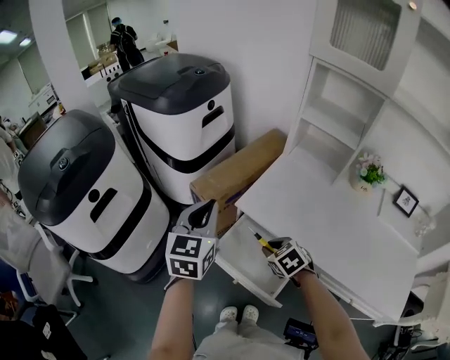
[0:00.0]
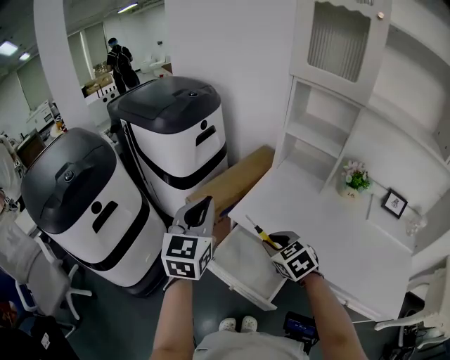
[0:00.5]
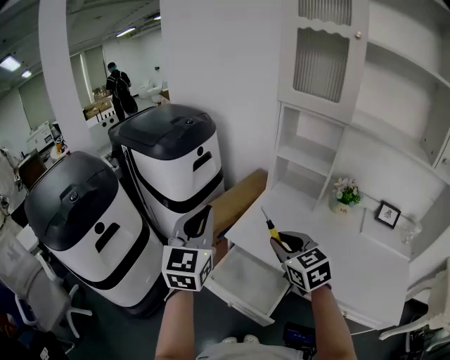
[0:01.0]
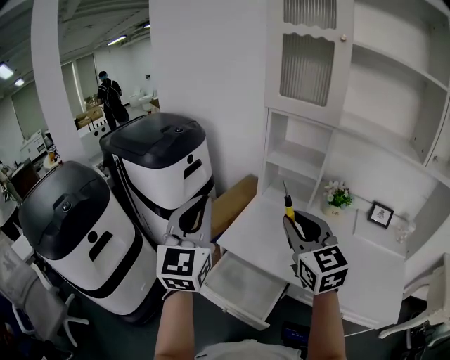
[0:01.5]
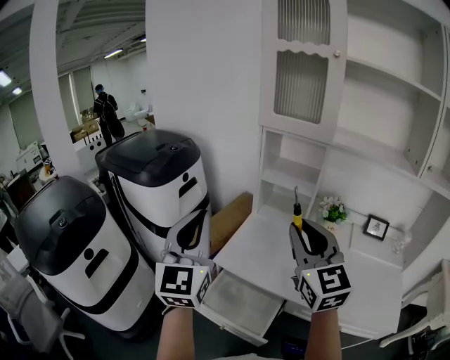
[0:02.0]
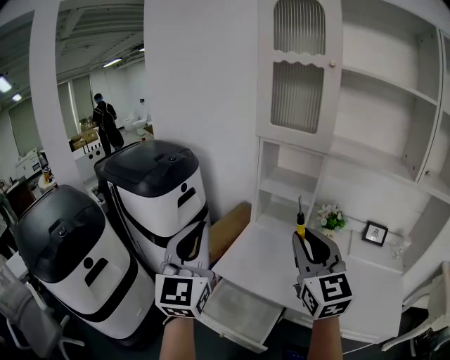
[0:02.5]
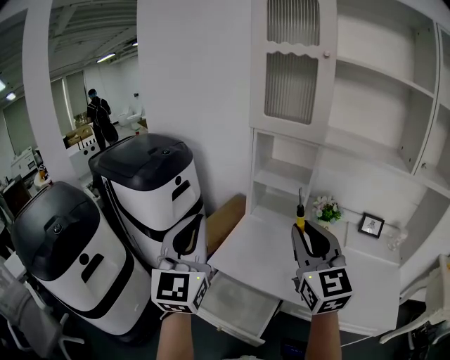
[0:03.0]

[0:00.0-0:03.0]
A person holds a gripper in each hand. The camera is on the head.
0:00.0 to 0:01.5: The right gripper is displaced upward by approximately 35 cm, and angles its fingers upward, by roughly 50 degrees, while the left gripper is displaced upward by roughly 20 cm, and turns by some 30 degrees.
0:01.5 to 0:03.0: The right gripper shifts some 5 cm upward.

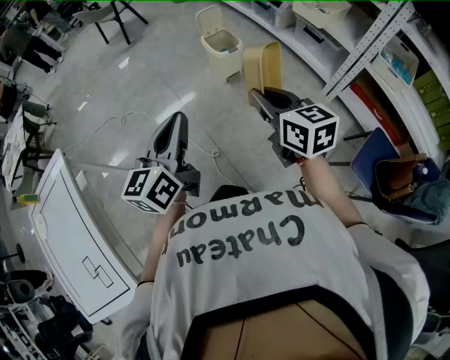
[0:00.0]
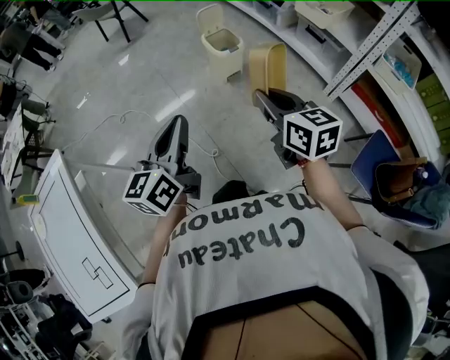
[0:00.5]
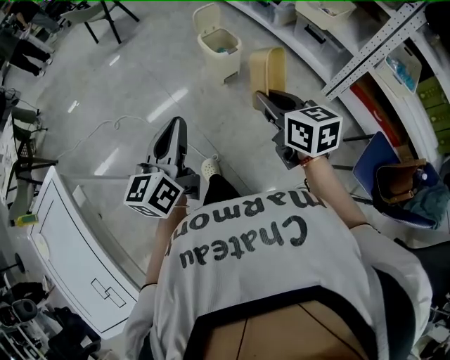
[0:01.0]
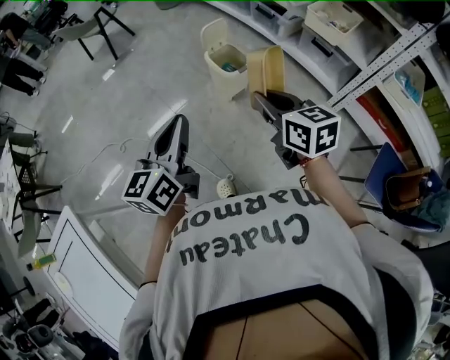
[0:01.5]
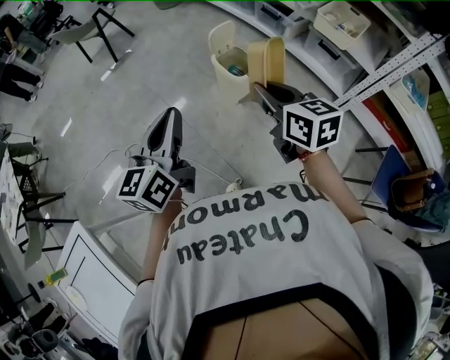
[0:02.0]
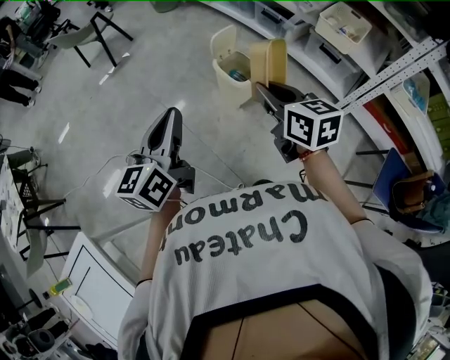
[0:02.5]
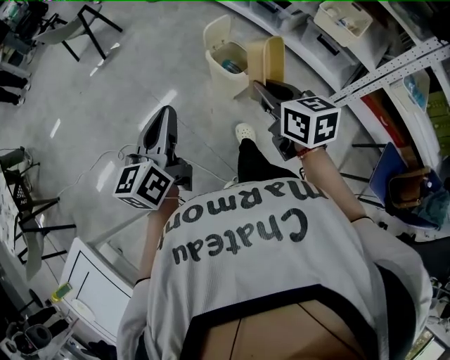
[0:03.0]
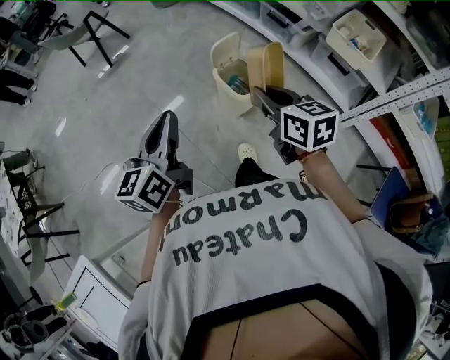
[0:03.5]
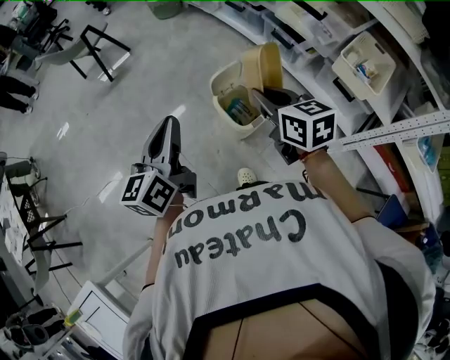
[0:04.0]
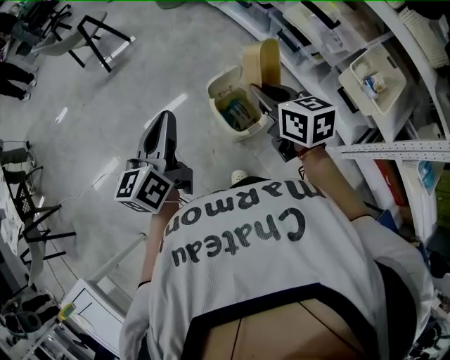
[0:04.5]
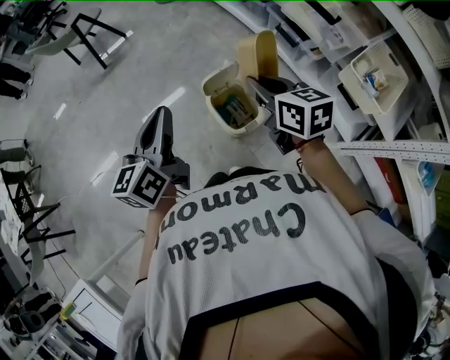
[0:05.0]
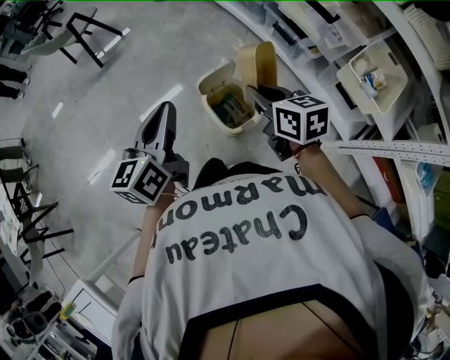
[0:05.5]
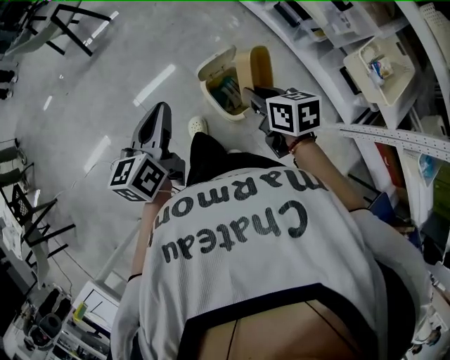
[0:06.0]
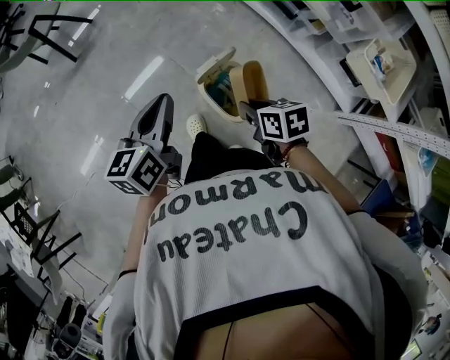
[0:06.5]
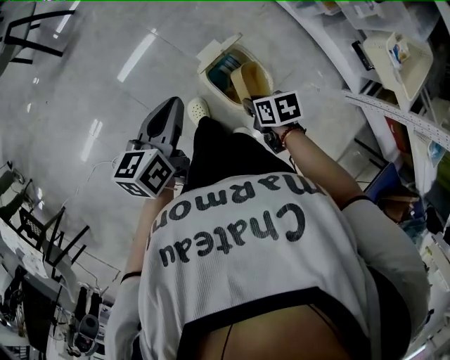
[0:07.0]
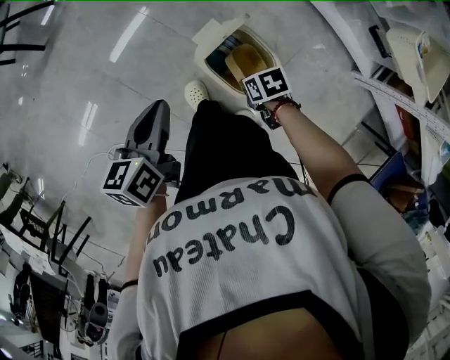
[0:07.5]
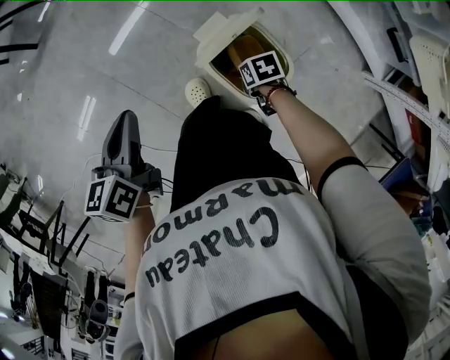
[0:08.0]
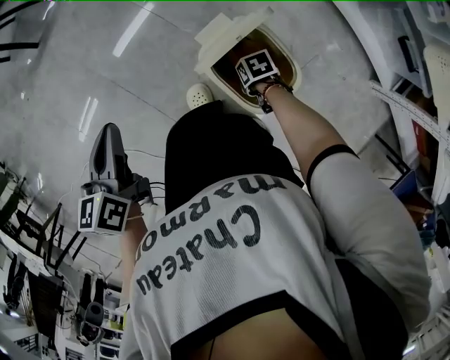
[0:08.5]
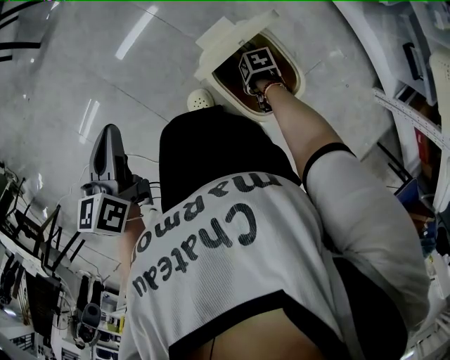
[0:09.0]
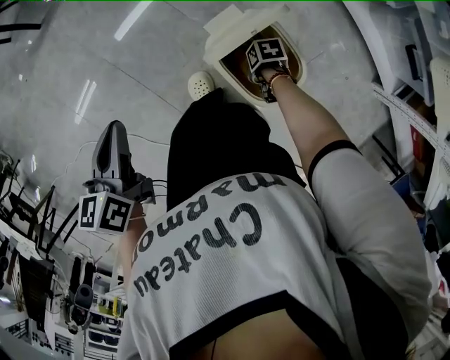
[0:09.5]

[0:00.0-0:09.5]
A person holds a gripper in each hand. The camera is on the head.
0:00.0 to 0:02.0: Both grippers move forward and to the left, about 35 cm.
0:02.0 to 0:04.0: The grippers both shift forward by some 30 cm.
0:04.0 to 0:05.5: The right gripper heads forward, downward and to the right, covering approximately 15 cm. The left gripper heads forward and to the right, covering some 10 cm.
0:05.5 to 0:07.5: The right gripper goes some 40 cm downward, and tips its fingers downward by some 40 degrees, while the left gripper is displaced downward and forward by approximately 30 cm, and swivels about 30 degrees.
0:07.5 to 0:09.5: The left gripper moves approximately 10 cm, while the right gripper travels downward by approximately 20 cm.

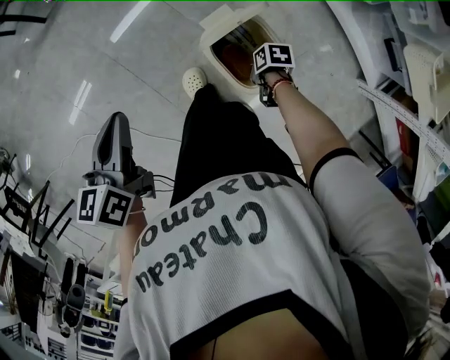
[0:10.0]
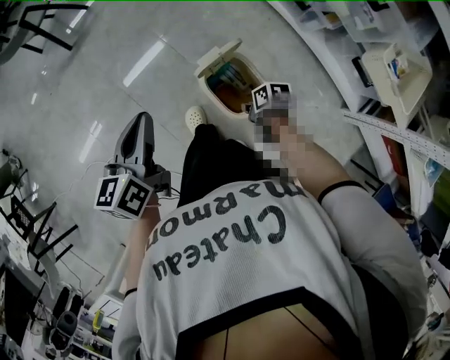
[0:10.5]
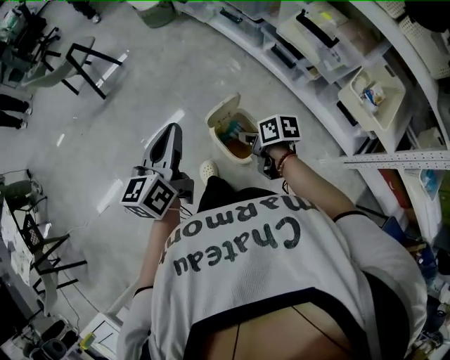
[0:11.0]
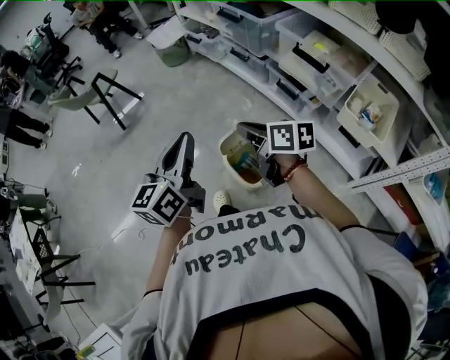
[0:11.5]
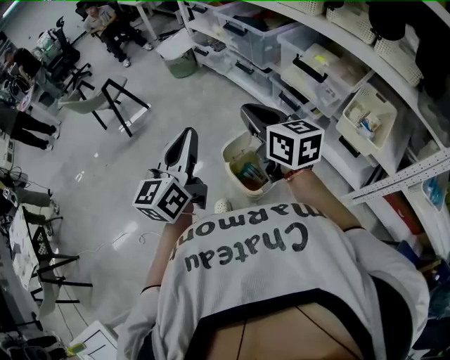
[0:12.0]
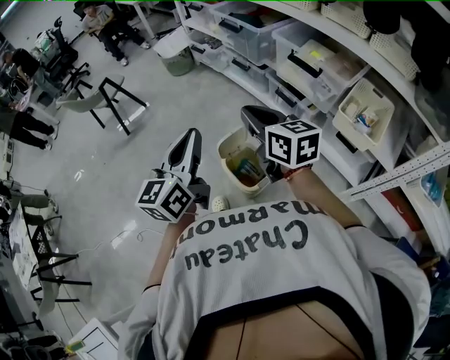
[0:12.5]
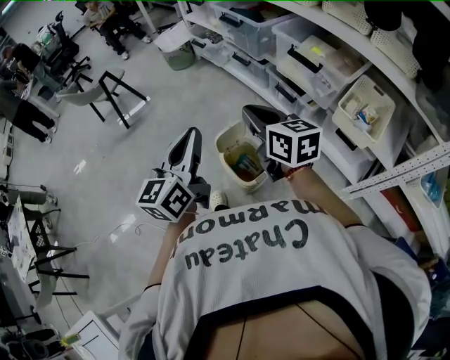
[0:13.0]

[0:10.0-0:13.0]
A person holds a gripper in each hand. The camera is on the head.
0:10.0 to 0:11.5: The left gripper goes roughly 30 cm upward, and tilts its fingers approximately 30 degrees upward; the right gripper is displaced upward by roughly 50 cm, and angles its fingers upward, by approximately 50 degrees.
0:11.5 to 0:13.0: The right gripper heads upward, covering roughly 10 cm, and swivels about 30 degrees; the left gripper moves backward, some 5 cm.

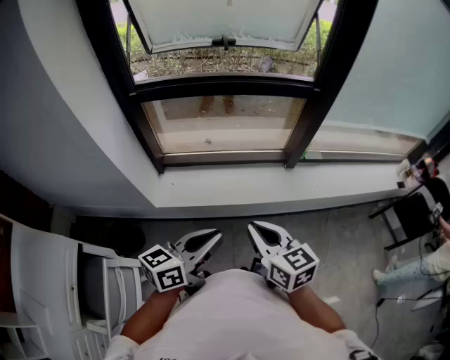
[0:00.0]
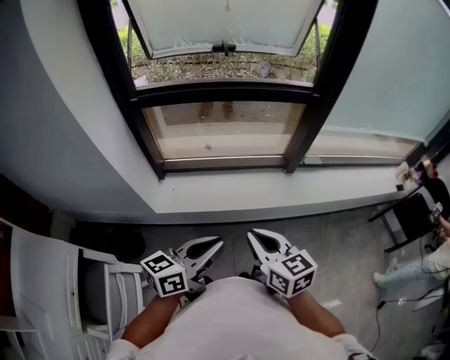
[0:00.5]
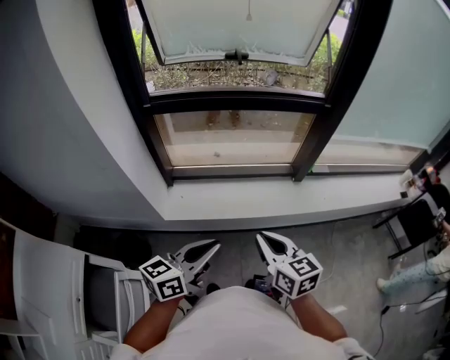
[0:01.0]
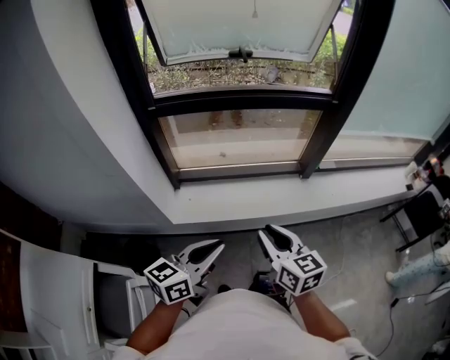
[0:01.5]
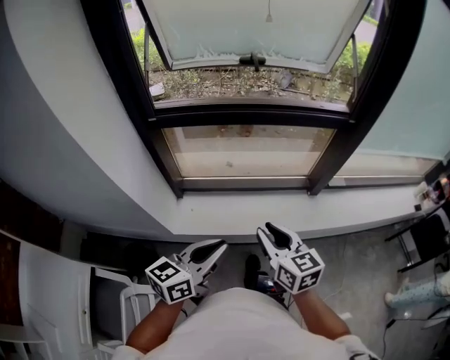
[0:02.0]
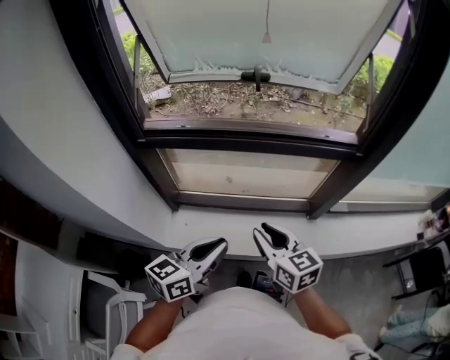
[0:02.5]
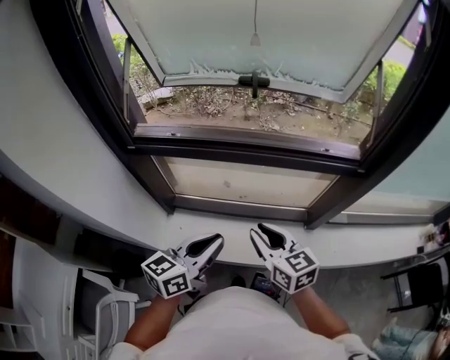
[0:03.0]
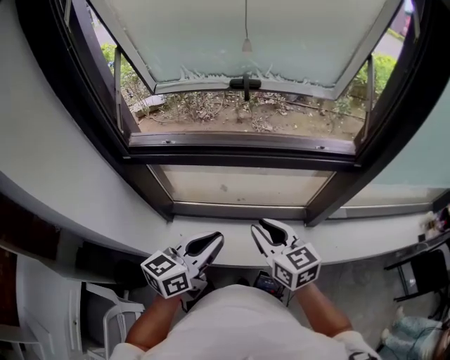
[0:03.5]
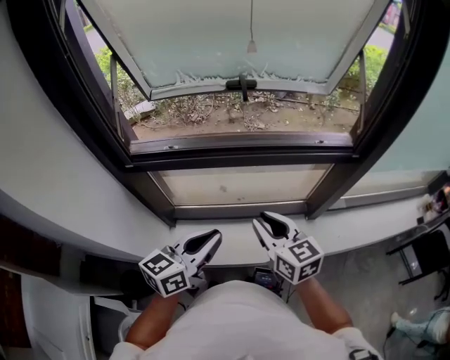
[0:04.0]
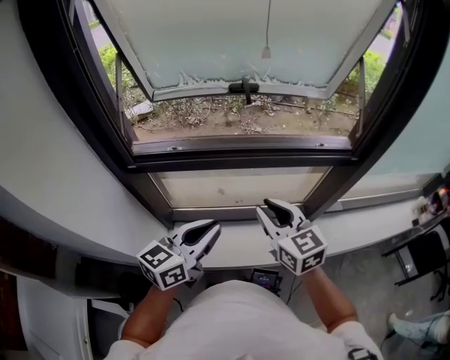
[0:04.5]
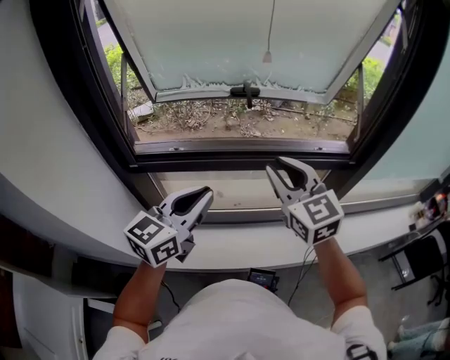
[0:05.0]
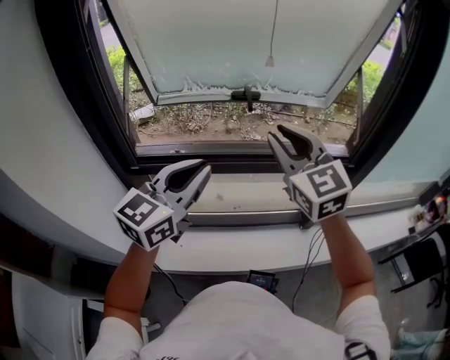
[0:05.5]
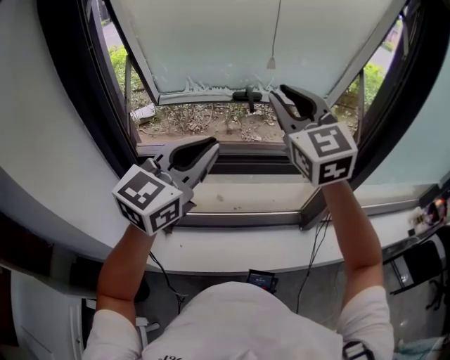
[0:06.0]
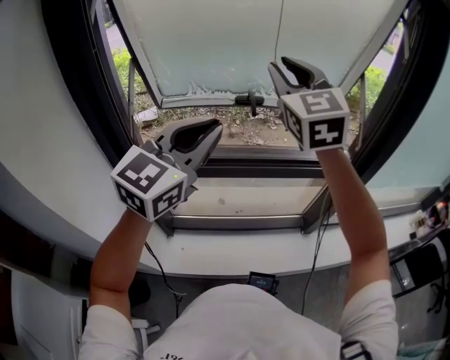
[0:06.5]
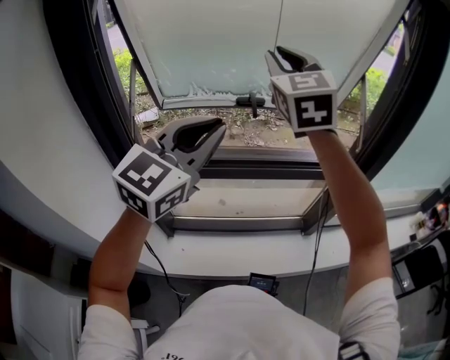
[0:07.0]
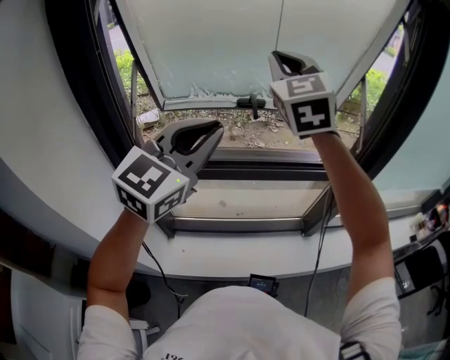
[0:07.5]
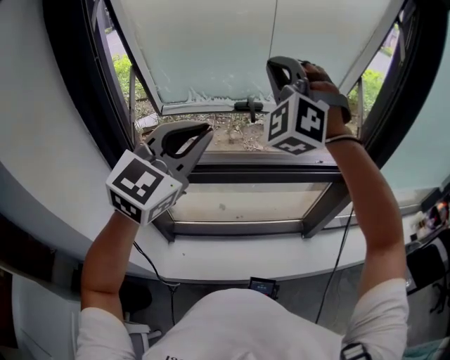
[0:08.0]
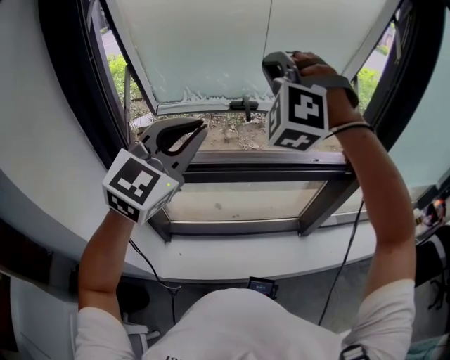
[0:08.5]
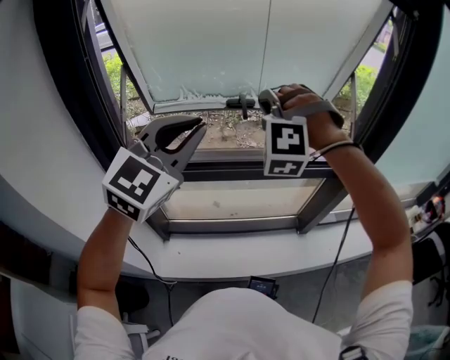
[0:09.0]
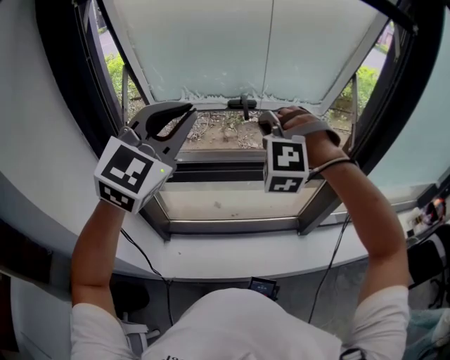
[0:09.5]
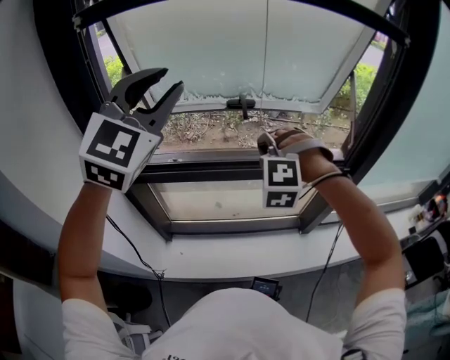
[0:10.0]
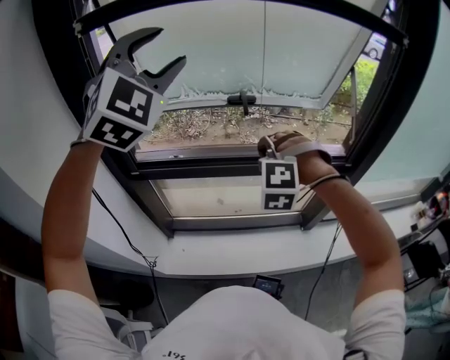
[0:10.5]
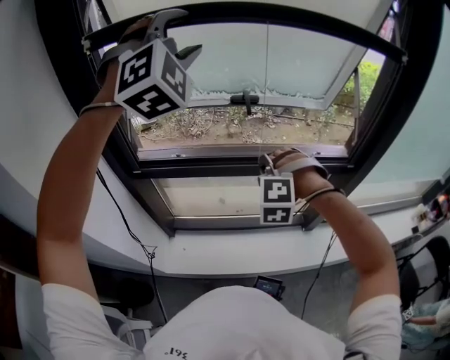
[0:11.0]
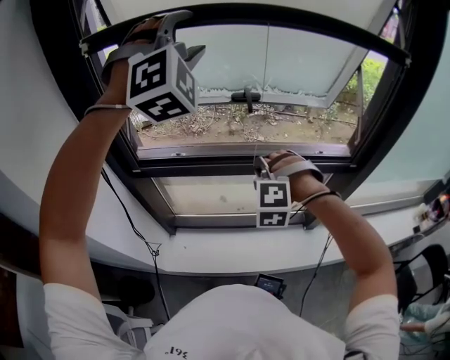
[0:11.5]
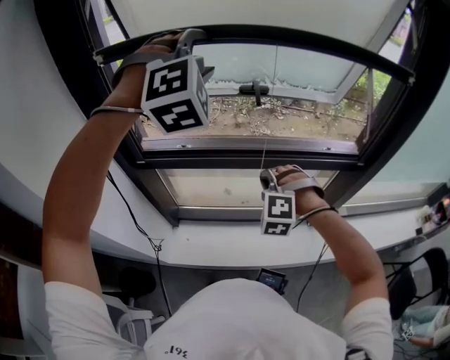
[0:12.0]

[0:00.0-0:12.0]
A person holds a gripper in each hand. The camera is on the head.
0:00.0 to 0:02.0: Both grippers move forward and to the left, approximately 15 cm.
0:02.0 to 0:04.0: The two grippers go roughly 20 cm forward.
0:04.0 to 0:06.0: Both grippers move upward and forward, approximately 30 cm. The right gripper rotates about 40 degrees; the left gripper rotates approximately 40 degrees.
0:06.0 to 0:08.0: The right gripper moves upward, roughly 5 cm, and rotates around the line of its fingers by about 50 degrees, counterclockwise from behind.
0:08.0 to 0:10.0: The right gripper moves downward, roughly 20 cm, and tips its fingers downward by approximately 40 degrees. Meanwhile the left gripper is displaced upward by roughly 10 cm, and changes its angle by about 20 degrees.
0:10.0 to 0:12.0: The left gripper moves forward, roughly 10 cm, twists approximately 40 degrees clockwise, seen from behind, and opens its fingers. The right gripper shifts about 15 cm downward.
